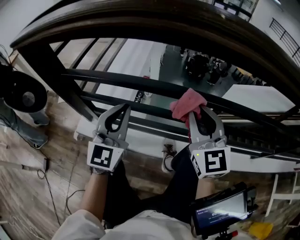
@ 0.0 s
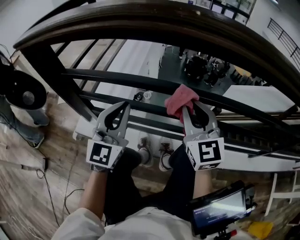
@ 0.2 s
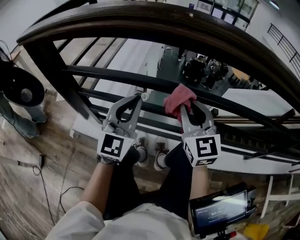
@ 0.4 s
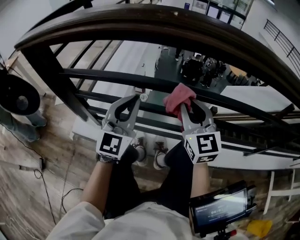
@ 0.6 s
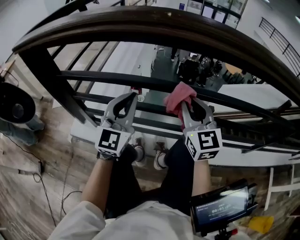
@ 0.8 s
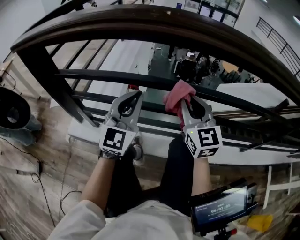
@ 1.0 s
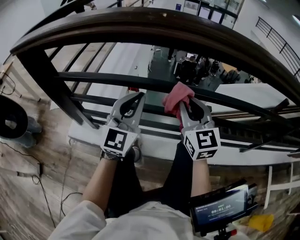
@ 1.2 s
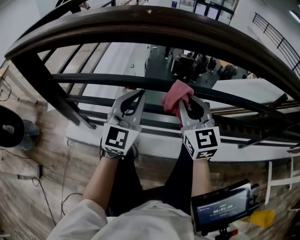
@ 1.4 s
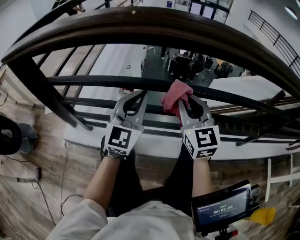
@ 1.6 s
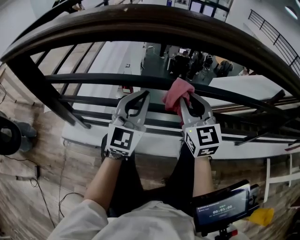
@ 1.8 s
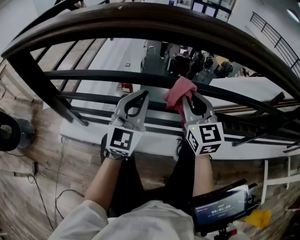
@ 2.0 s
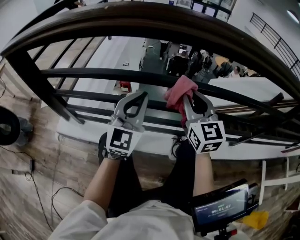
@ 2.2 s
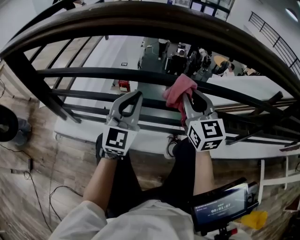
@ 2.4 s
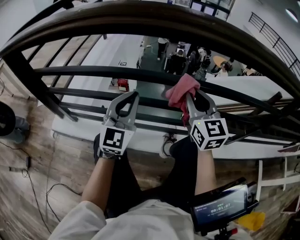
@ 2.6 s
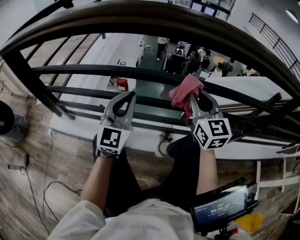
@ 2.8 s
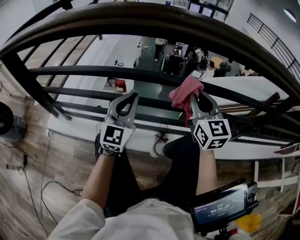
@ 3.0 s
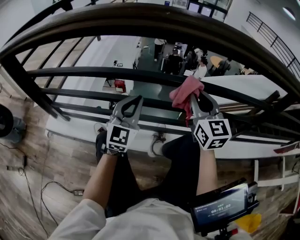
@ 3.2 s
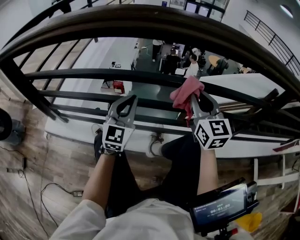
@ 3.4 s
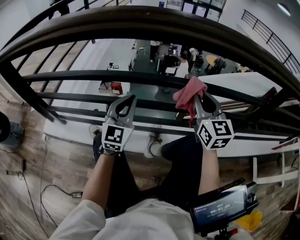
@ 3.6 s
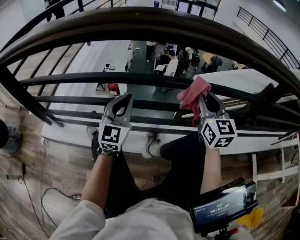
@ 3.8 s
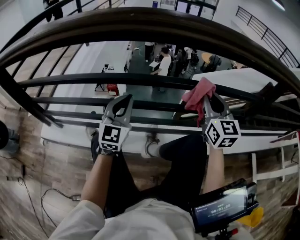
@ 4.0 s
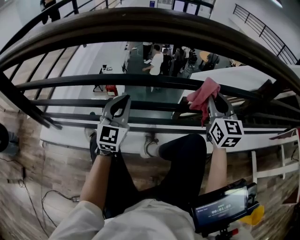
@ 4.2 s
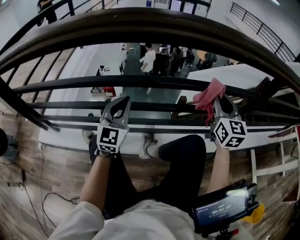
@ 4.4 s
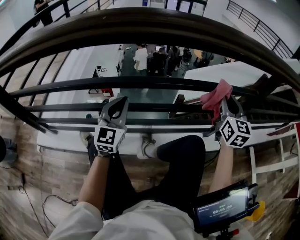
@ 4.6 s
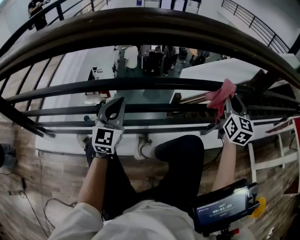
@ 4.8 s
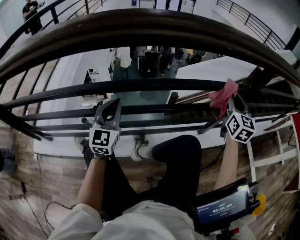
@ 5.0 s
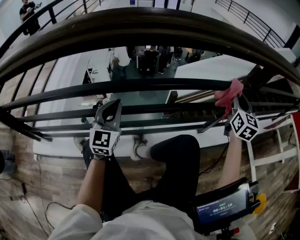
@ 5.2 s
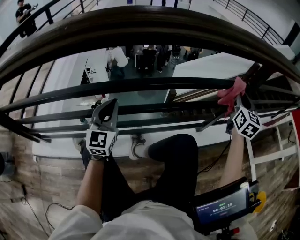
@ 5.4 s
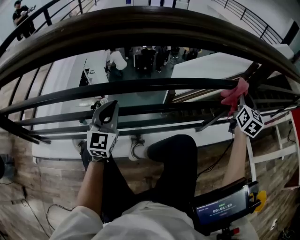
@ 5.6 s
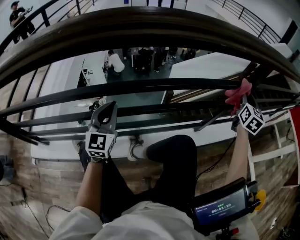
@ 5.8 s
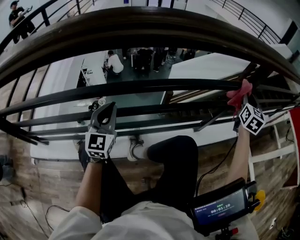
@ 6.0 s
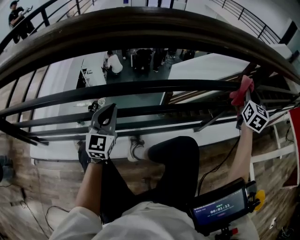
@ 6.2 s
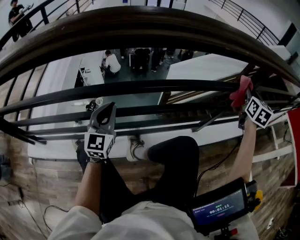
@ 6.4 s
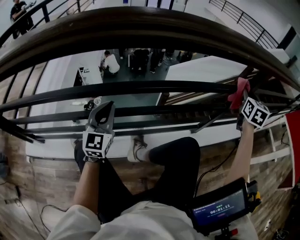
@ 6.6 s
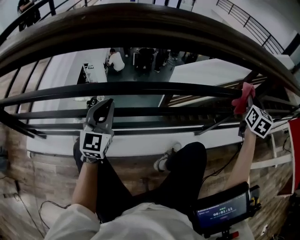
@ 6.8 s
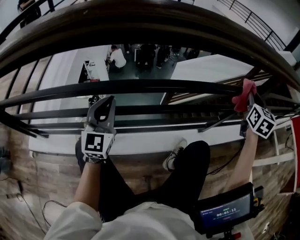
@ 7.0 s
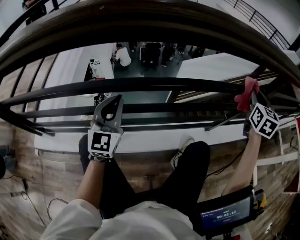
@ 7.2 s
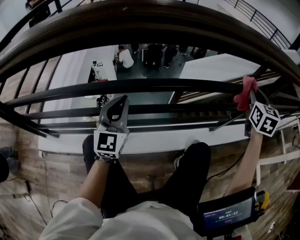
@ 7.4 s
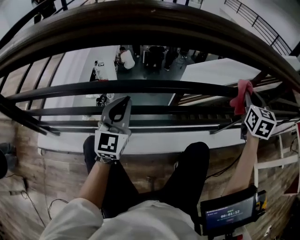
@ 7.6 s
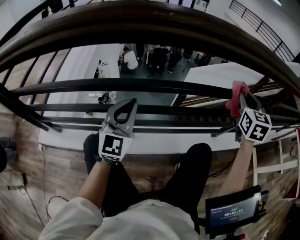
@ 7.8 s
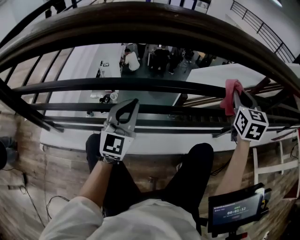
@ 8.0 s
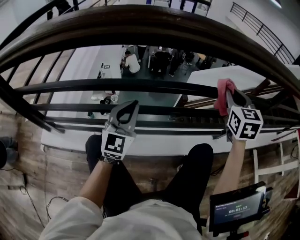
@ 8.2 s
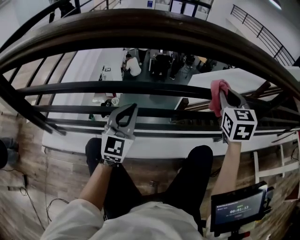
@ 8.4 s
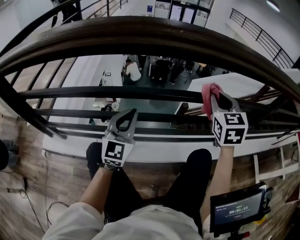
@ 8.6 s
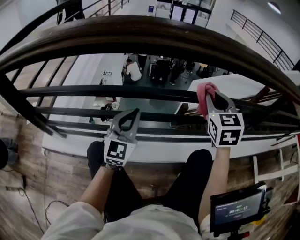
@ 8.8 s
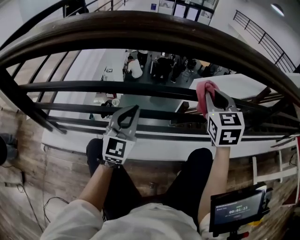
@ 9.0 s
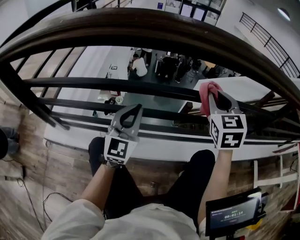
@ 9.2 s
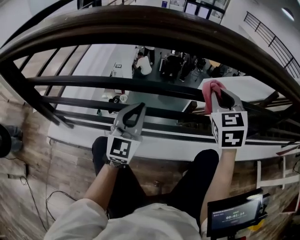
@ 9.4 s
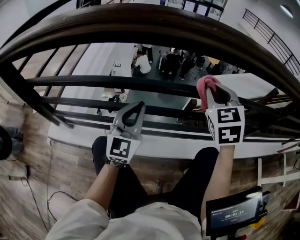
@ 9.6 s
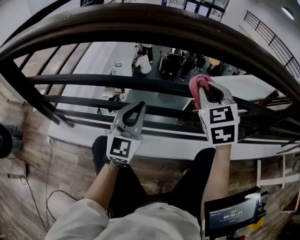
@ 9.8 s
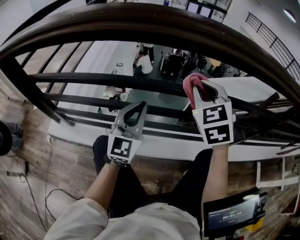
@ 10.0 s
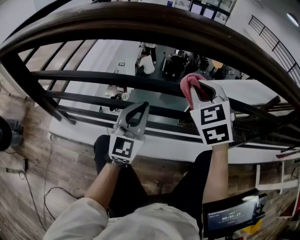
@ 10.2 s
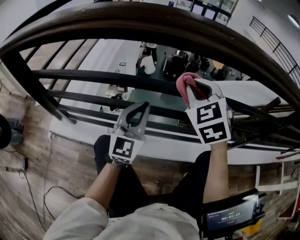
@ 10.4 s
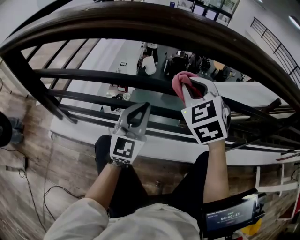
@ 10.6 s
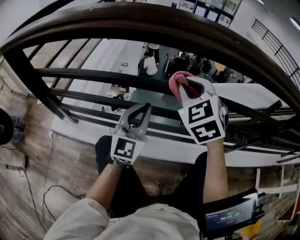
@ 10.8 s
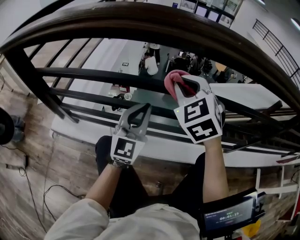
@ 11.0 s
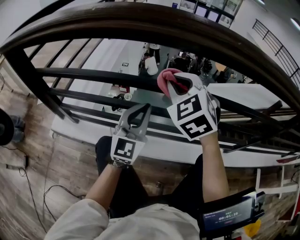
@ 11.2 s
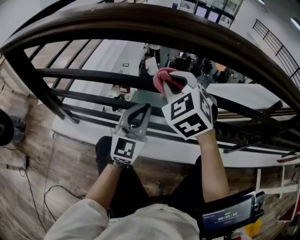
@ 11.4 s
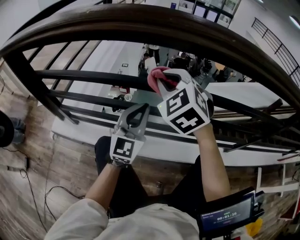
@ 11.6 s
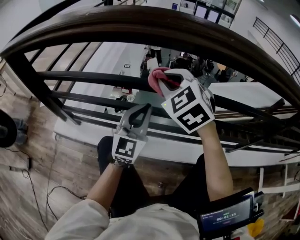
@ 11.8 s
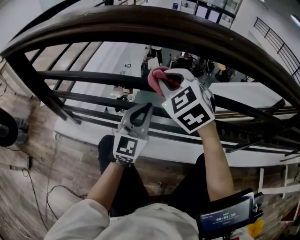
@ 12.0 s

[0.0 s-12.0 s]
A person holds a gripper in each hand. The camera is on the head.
0.0 to 1.6 s: The left gripper is displaced to the right by some 15 cm, while the right gripper shifts roughly 10 cm to the right.
1.6 to 3.0 s: The left gripper travels to the right by some 15 cm; the right gripper is displaced to the right by approximately 20 cm.
3.0 to 4.4 s: The left gripper goes about 5 cm to the right; the right gripper travels to the right by about 20 cm.
4.4 to 6.0 s: The right gripper is displaced to the right by about 25 cm, and changes its angle by approximately 30 degrees.
6.0 to 7.6 s: The left gripper goes approximately 5 cm to the left, while the right gripper heads to the left, covering roughly 20 cm.
7.6 to 9.0 s: The right gripper travels to the left by about 20 cm.
9.0 to 10.4 s: The right gripper goes about 15 cm to the left, and swivels approximately 20 degrees.
10.4 to 12.0 s: The right gripper moves to the left, some 10 cm.

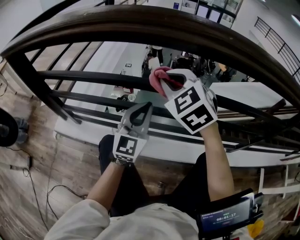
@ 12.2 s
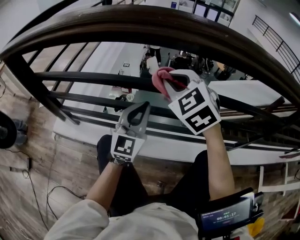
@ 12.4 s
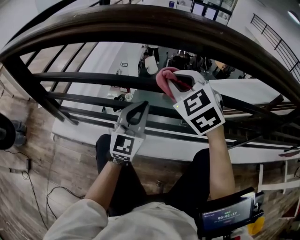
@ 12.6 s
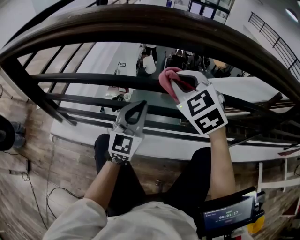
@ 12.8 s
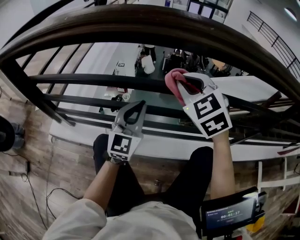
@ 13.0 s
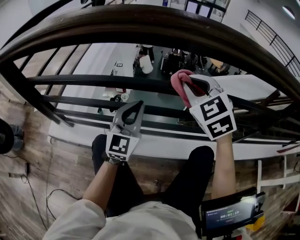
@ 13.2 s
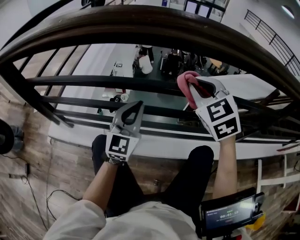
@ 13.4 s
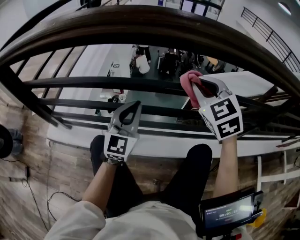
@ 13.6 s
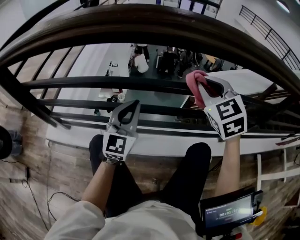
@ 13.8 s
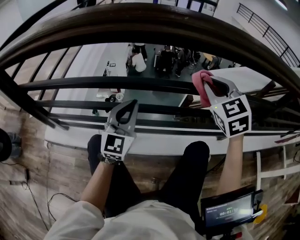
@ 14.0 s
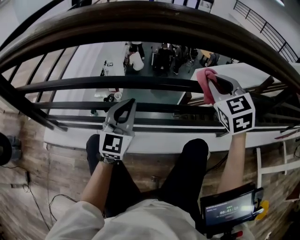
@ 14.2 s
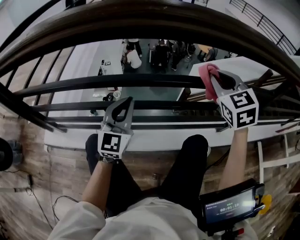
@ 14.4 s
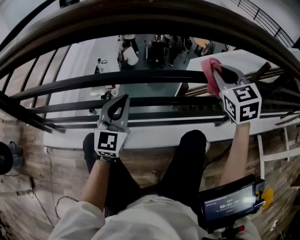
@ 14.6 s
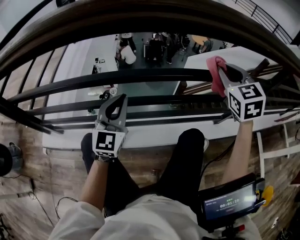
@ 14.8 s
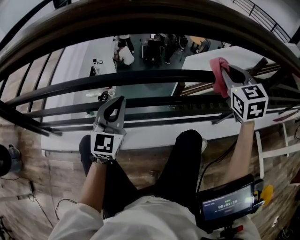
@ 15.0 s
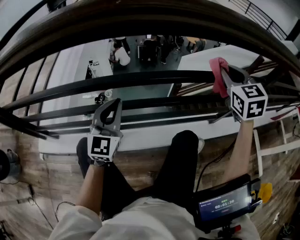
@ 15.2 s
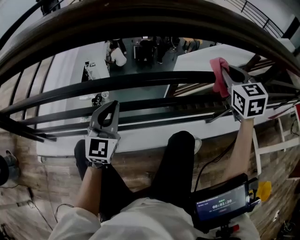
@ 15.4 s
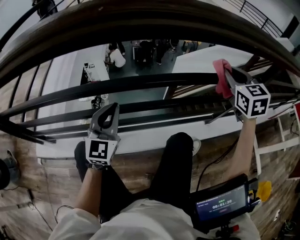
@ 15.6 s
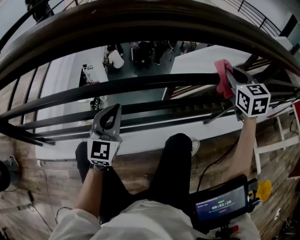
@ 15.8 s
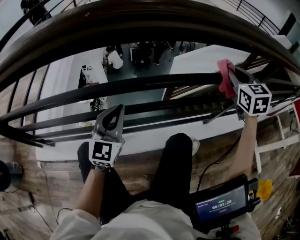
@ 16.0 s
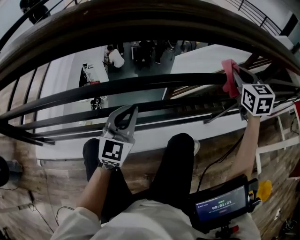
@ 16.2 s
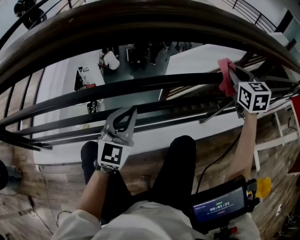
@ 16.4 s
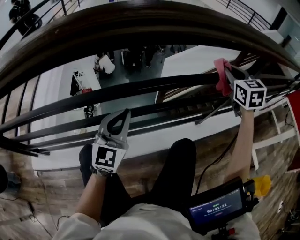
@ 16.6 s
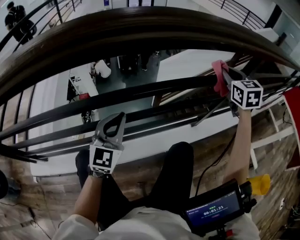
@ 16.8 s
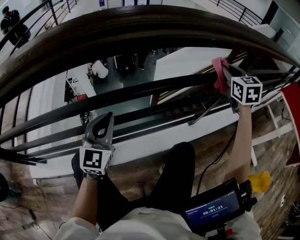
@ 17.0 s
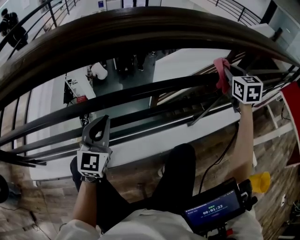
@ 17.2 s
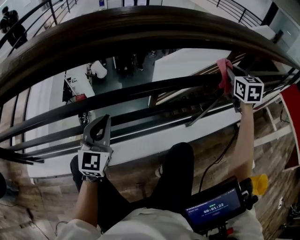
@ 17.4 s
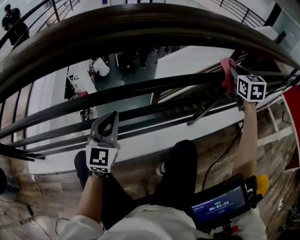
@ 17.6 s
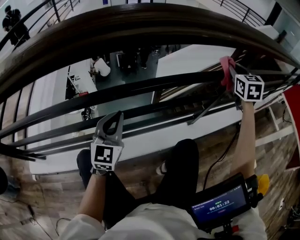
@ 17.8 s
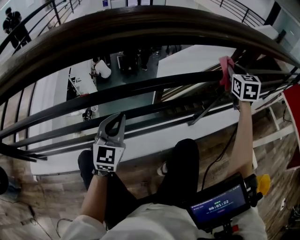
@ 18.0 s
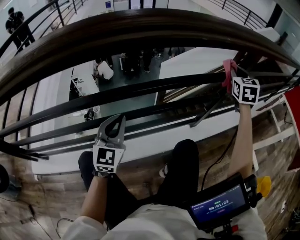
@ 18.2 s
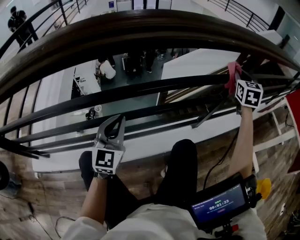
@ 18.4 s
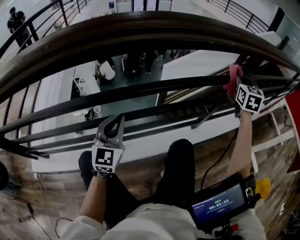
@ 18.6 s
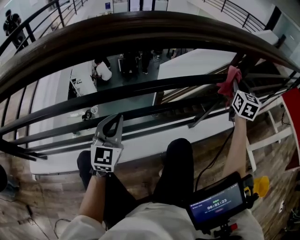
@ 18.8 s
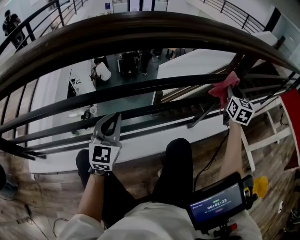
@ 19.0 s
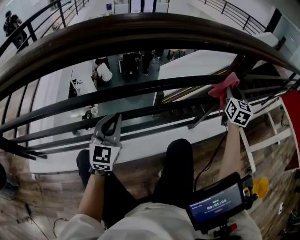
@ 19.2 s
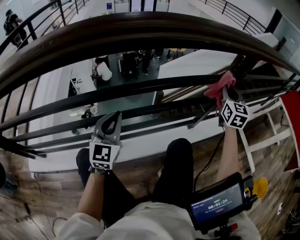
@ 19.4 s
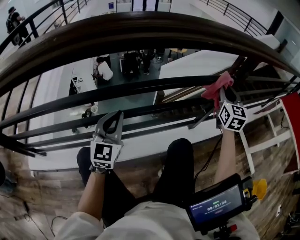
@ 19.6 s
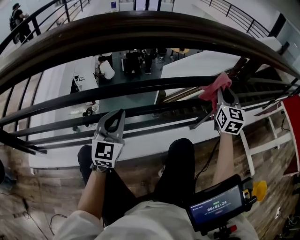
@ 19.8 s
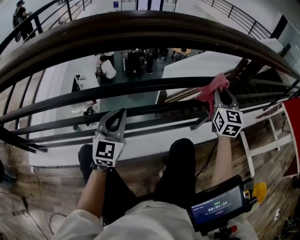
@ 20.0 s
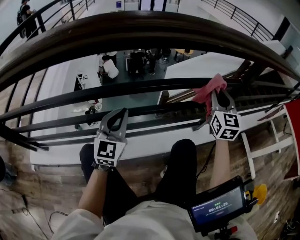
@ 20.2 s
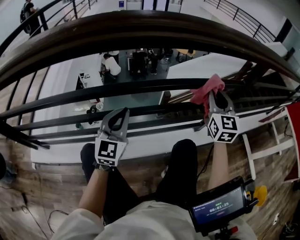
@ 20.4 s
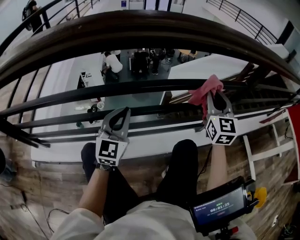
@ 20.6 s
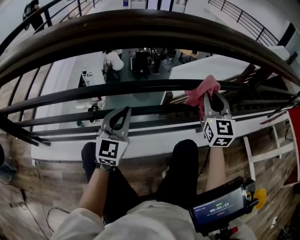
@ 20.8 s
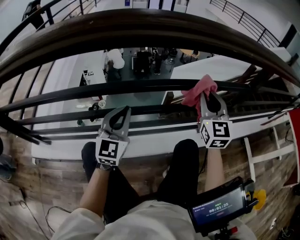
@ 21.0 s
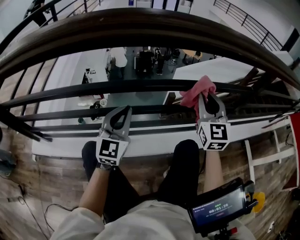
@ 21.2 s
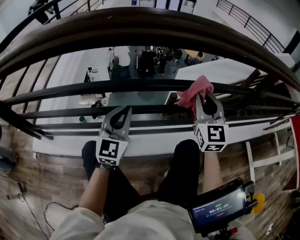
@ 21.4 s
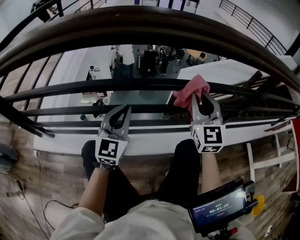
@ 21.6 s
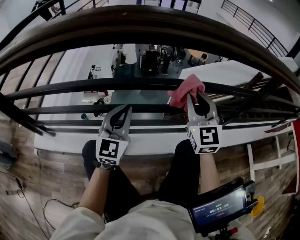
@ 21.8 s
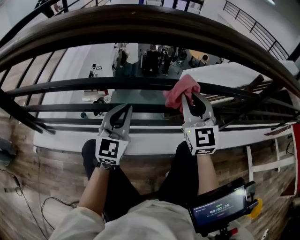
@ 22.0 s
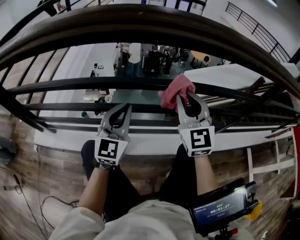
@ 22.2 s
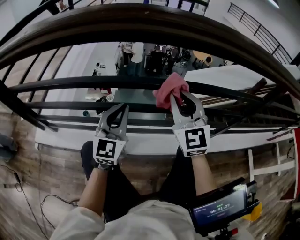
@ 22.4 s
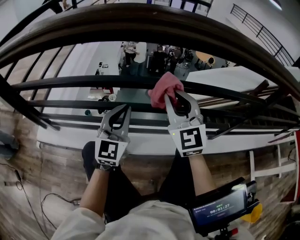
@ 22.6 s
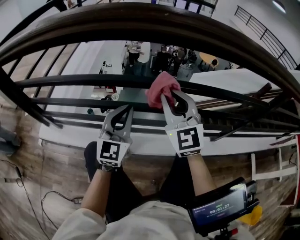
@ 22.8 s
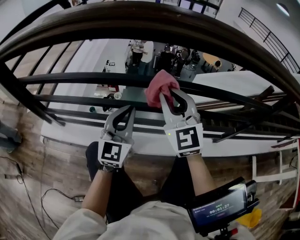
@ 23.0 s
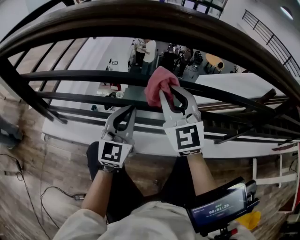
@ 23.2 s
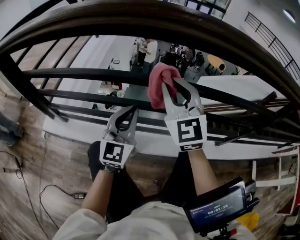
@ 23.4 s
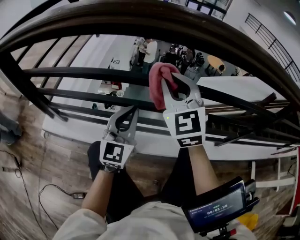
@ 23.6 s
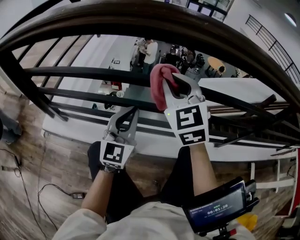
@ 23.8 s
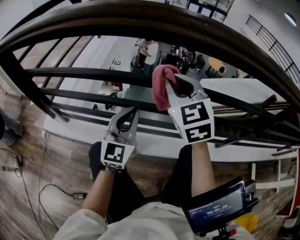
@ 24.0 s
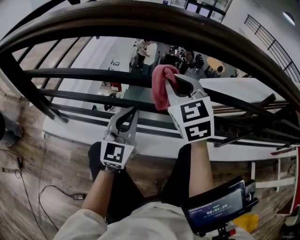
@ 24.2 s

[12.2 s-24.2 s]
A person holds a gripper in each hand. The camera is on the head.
12.2 to 13.8 s: The right gripper is displaced to the right by roughly 20 cm.
13.8 to 15.2 s: The right gripper moves to the right, approximately 20 cm, and turns by some 20 degrees.
15.2 to 16.6 s: The grippers both shift to the right by some 10 cm.
16.6 to 18.2 s: The right gripper shifts about 10 cm to the right.
18.2 to 19.8 s: The right gripper travels backward and to the left by approximately 10 cm.
19.8 to 21.2 s: The right gripper travels to the left by roughly 15 cm.
21.2 to 22.6 s: The left gripper travels to the left by roughly 10 cm; the right gripper shifts some 20 cm to the left, and rotates roughly 20 degrees.
22.6 to 24.2 s: The right gripper is displaced to the left by some 5 cm.
